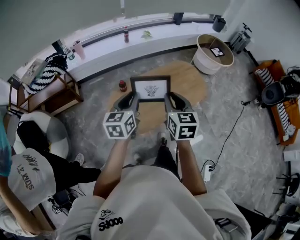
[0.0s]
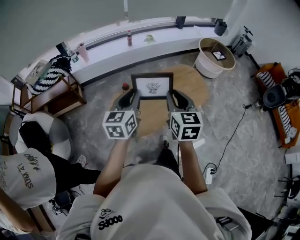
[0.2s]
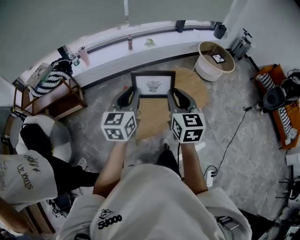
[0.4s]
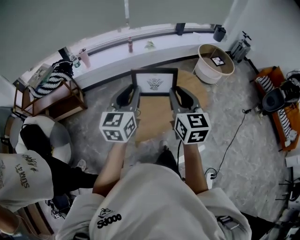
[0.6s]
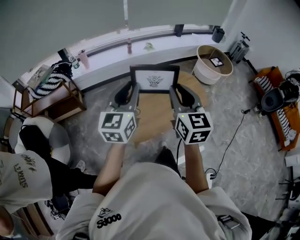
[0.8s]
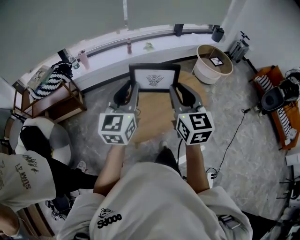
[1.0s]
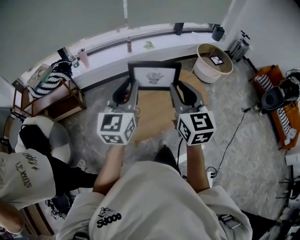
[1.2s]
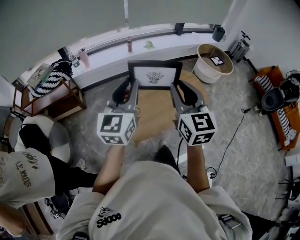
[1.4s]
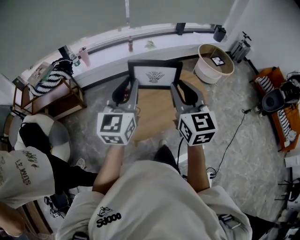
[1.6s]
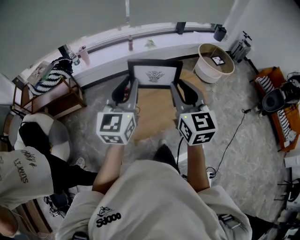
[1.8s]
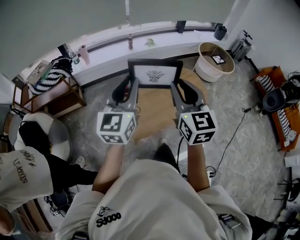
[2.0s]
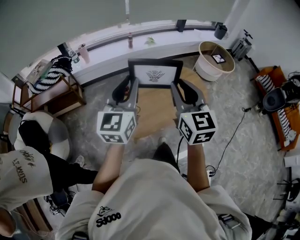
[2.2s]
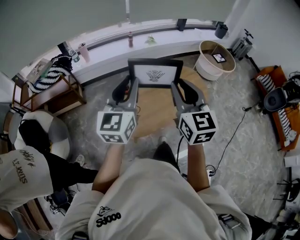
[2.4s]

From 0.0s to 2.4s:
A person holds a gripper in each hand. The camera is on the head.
From 0.0s to 1.2s: Both grippers travel together upward, some 15 cm. The left gripper changes its angle by about 30 degrees; the right gripper changes its angle by roughly 20 degrees.
From 1.2s to 2.4s: Both grippers stay put.

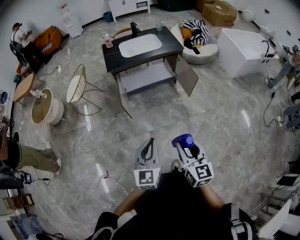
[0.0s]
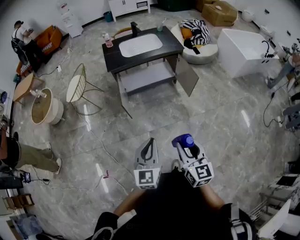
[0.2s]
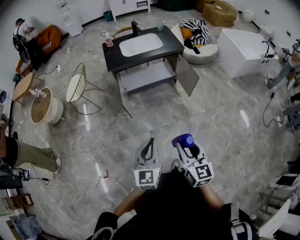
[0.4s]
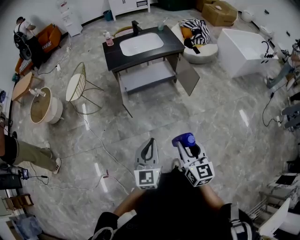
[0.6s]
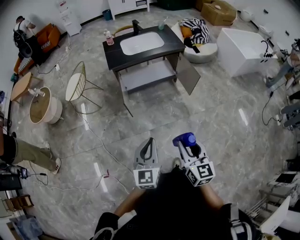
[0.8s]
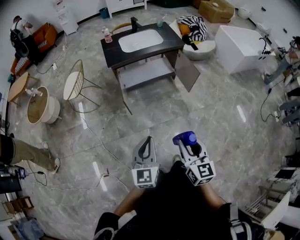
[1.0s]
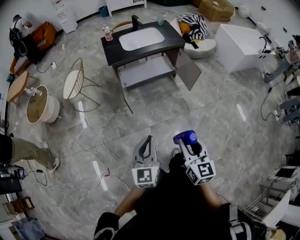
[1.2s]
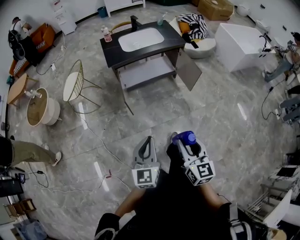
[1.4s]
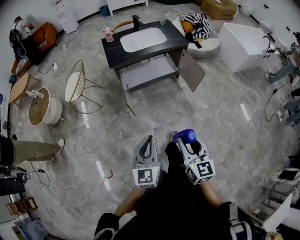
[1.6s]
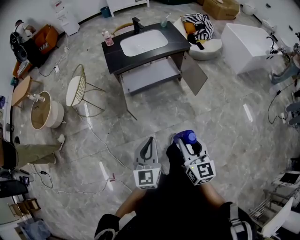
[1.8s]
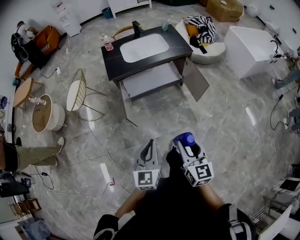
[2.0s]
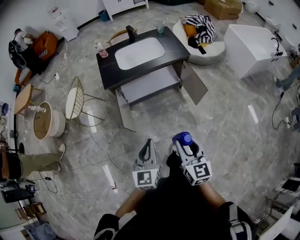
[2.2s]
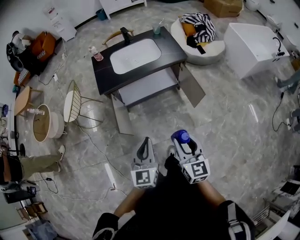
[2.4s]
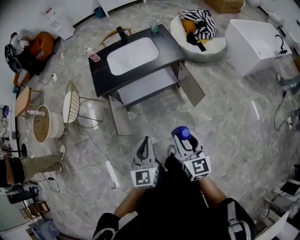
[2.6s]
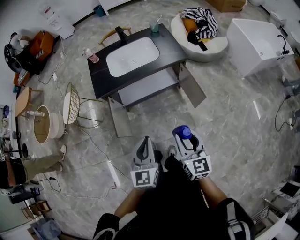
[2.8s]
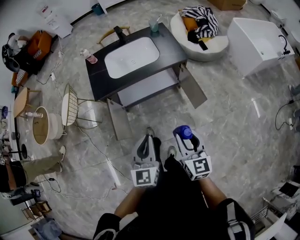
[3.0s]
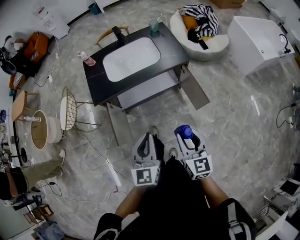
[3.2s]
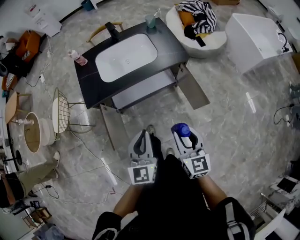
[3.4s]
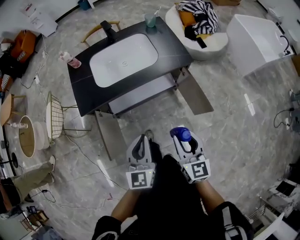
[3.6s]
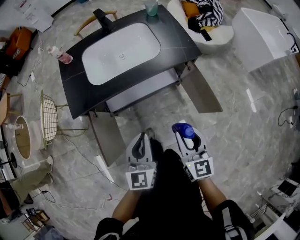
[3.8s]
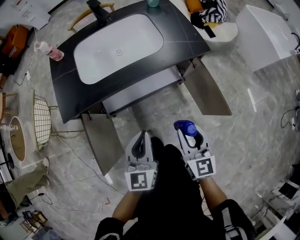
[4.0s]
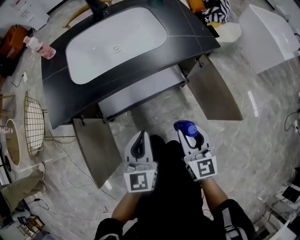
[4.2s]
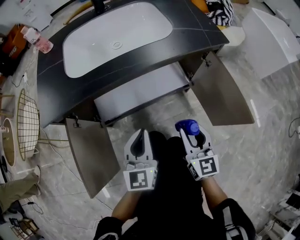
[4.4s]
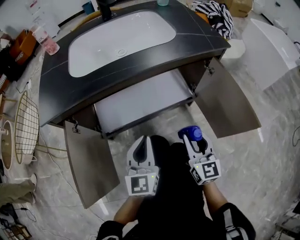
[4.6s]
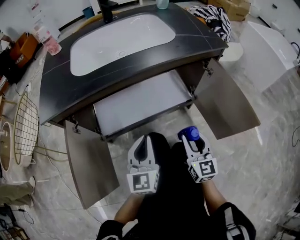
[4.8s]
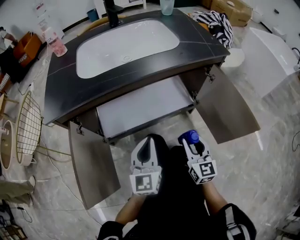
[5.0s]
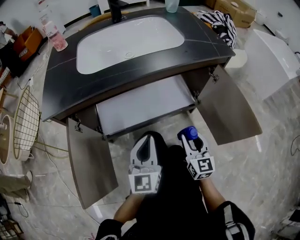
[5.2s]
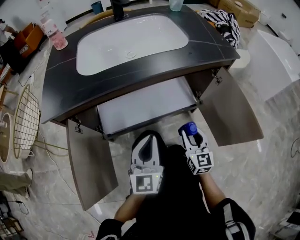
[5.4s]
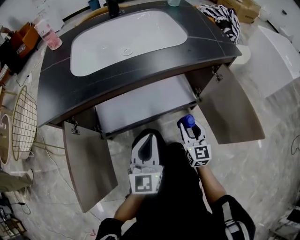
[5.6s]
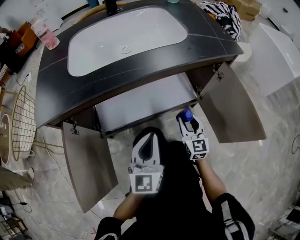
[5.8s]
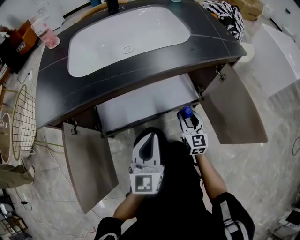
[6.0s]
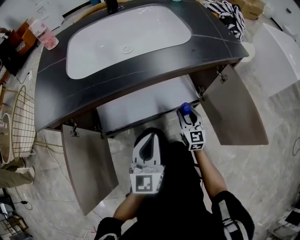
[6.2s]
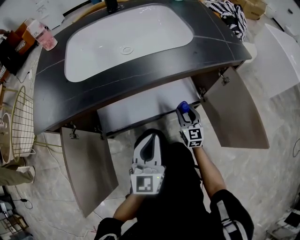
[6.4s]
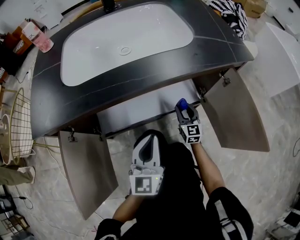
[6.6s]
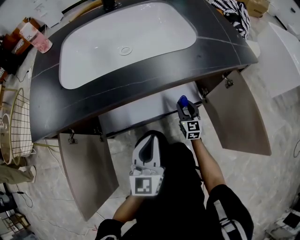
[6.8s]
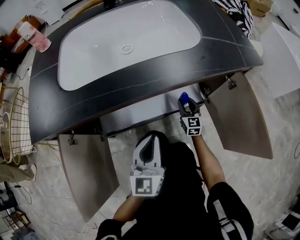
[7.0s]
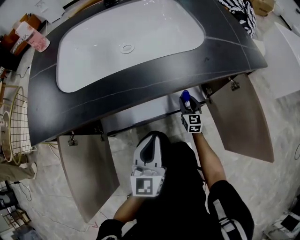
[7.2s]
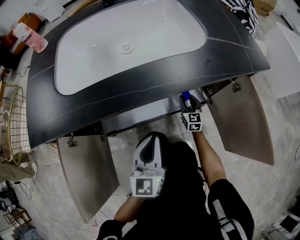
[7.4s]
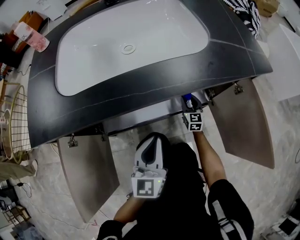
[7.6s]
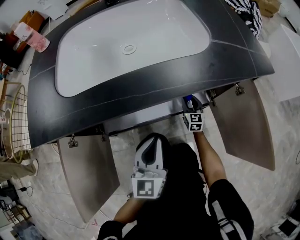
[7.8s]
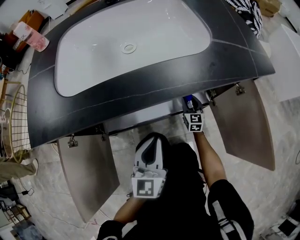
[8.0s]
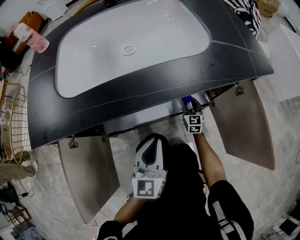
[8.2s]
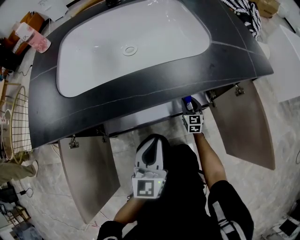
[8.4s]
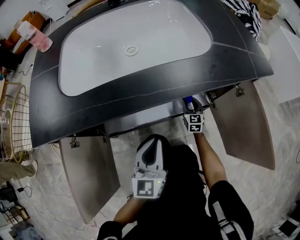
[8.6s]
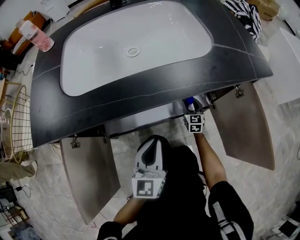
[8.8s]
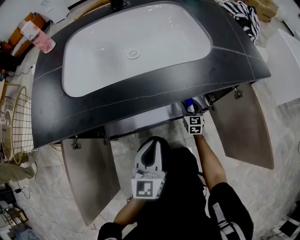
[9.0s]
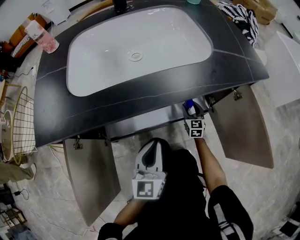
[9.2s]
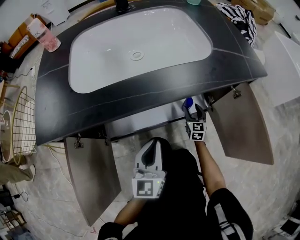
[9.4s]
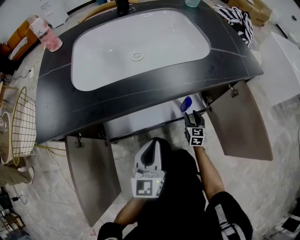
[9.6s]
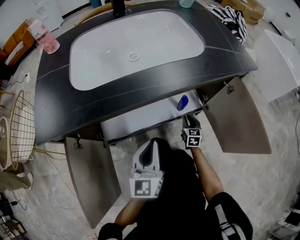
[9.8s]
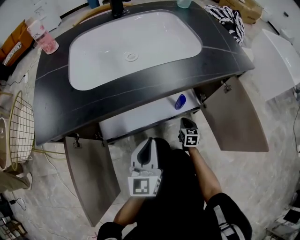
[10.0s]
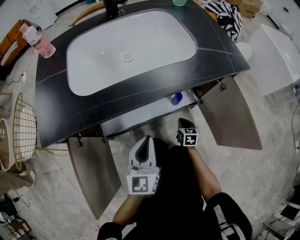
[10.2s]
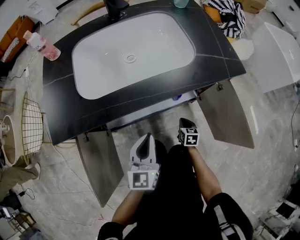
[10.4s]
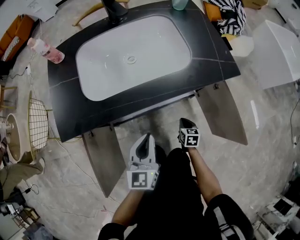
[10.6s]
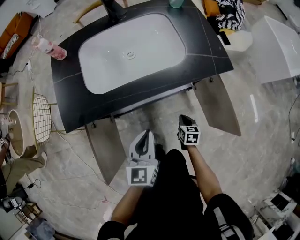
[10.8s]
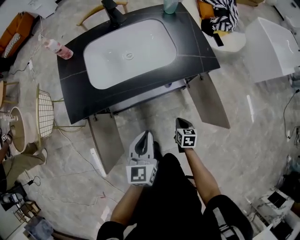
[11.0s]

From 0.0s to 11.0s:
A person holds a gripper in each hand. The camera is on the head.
From 0.0s to 1.6s: The left gripper shifts some 10 cm to the left, while the right gripper travels to the left and forward by some 10 cm.
From 1.6s to 3.2s: The two grippers travel together, forward, approximately 40 cm.
From 3.2s to 4.8s: The grippers both shift downward and forward by about 50 cm.
From 4.8s to 6.2s: The left gripper changes place by about 5 cm. The right gripper shifts some 20 cm forward and downward.
From 6.2s to 7.8s: The left gripper moves forward, about 5 cm. The right gripper goes about 20 cm forward and downward.
From 7.8s to 9.4s: The grippers move only a little.
From 9.4s to 11.0s: The right gripper goes approximately 35 cm backward and upward, rotates some 40 degrees, and closes. The left gripper is displaced upward by about 25 cm.

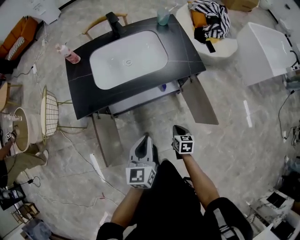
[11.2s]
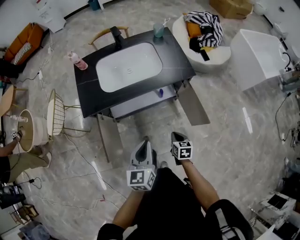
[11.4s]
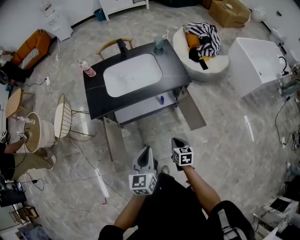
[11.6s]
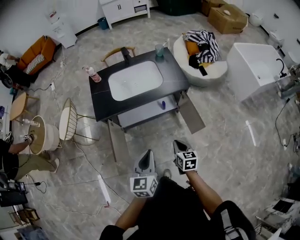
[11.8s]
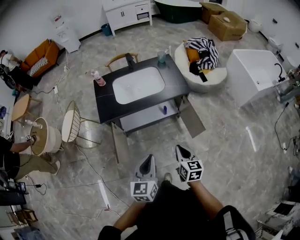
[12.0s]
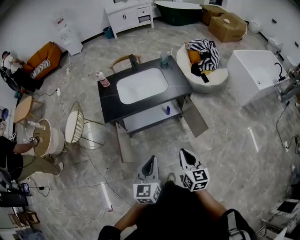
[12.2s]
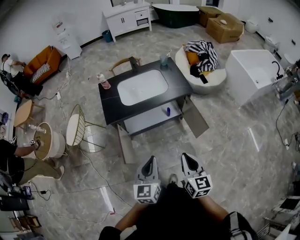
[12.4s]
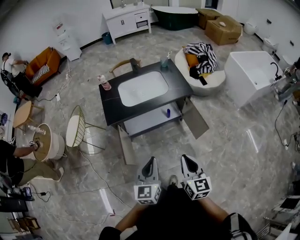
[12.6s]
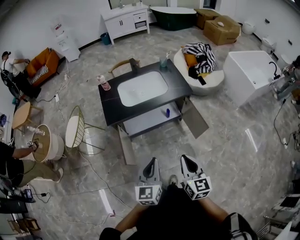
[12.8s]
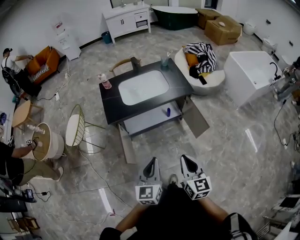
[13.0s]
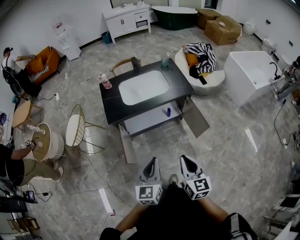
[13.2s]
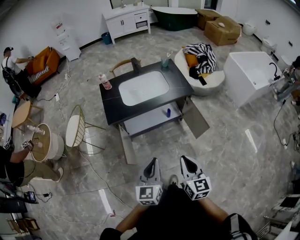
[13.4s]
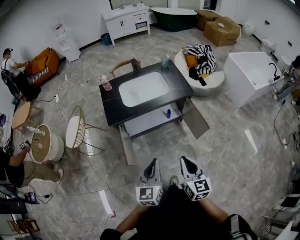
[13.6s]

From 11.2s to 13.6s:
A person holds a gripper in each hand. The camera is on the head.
From 11.2s to 12.4s: The right gripper shifts approximately 50 cm upward and backward, and tilts its fingers roughly 30 degrees upward; the left gripper is displaced backward and upward by approximately 30 cm.
From 12.4s to 13.6s: The grippers move only a little.

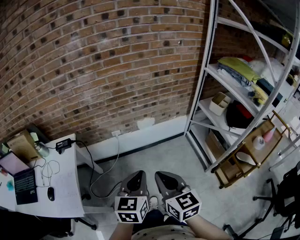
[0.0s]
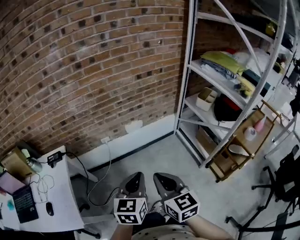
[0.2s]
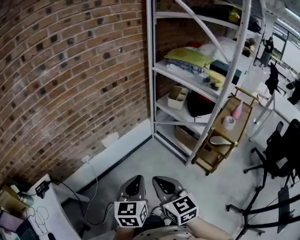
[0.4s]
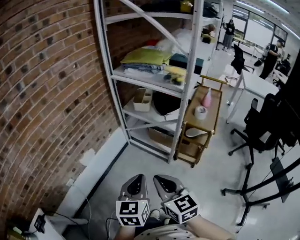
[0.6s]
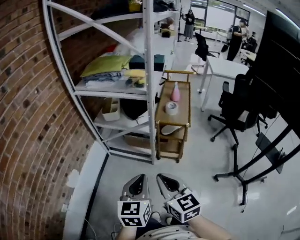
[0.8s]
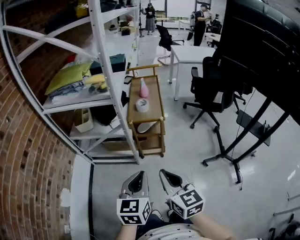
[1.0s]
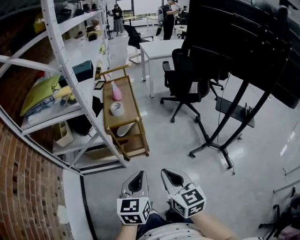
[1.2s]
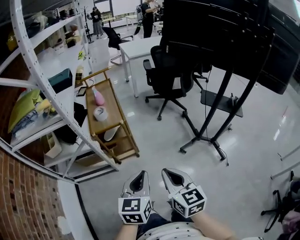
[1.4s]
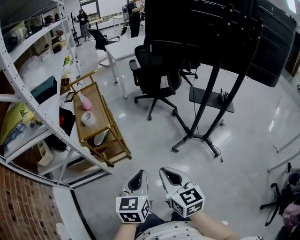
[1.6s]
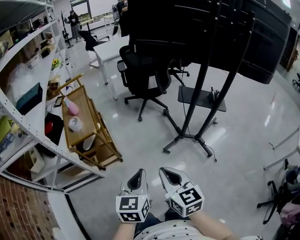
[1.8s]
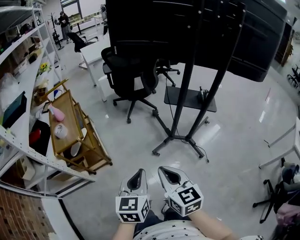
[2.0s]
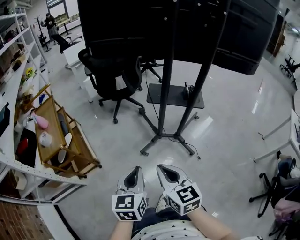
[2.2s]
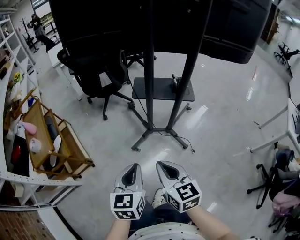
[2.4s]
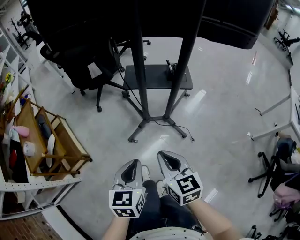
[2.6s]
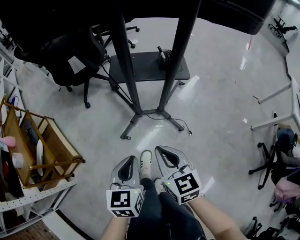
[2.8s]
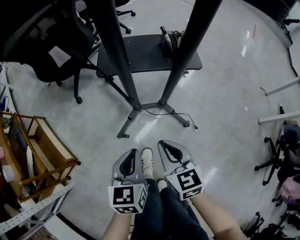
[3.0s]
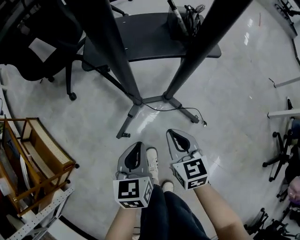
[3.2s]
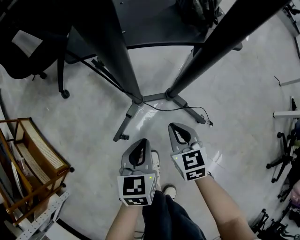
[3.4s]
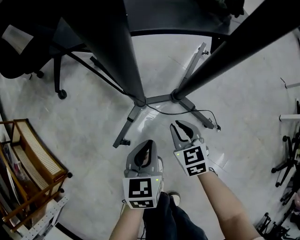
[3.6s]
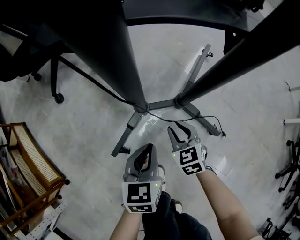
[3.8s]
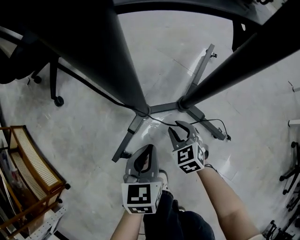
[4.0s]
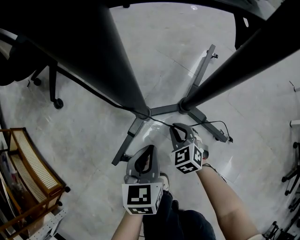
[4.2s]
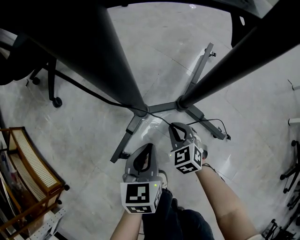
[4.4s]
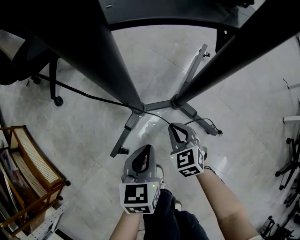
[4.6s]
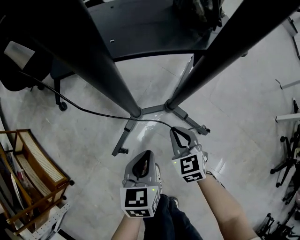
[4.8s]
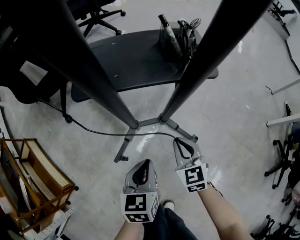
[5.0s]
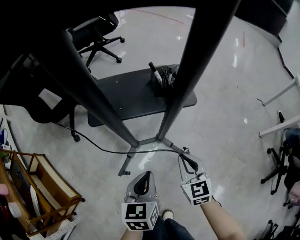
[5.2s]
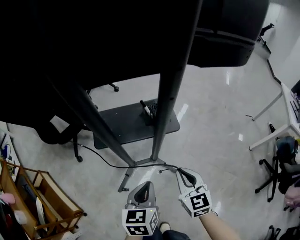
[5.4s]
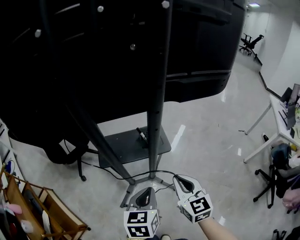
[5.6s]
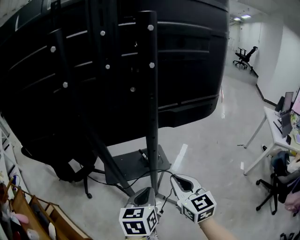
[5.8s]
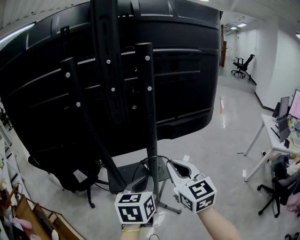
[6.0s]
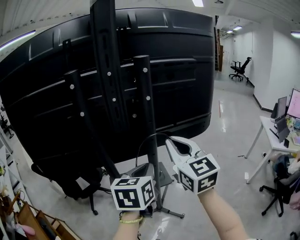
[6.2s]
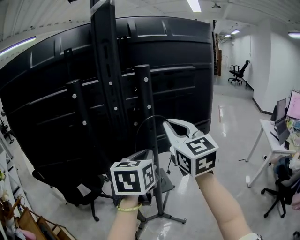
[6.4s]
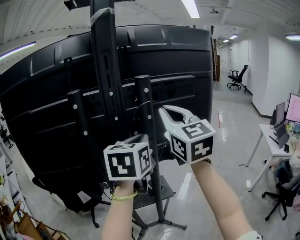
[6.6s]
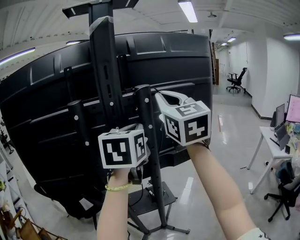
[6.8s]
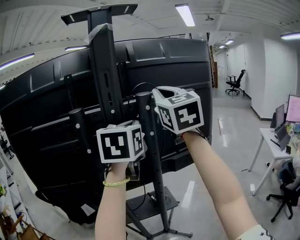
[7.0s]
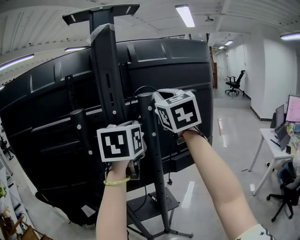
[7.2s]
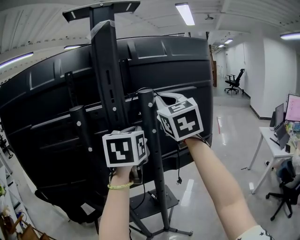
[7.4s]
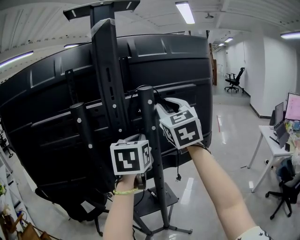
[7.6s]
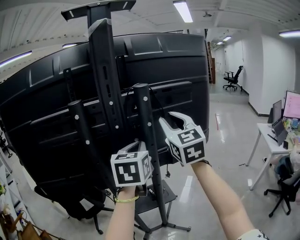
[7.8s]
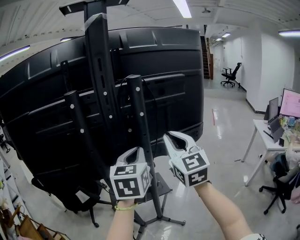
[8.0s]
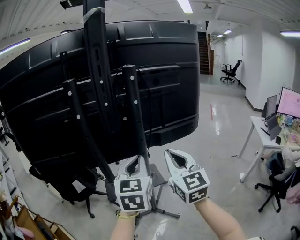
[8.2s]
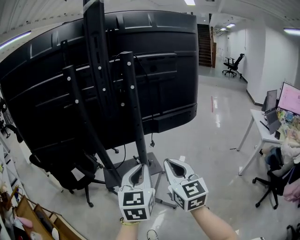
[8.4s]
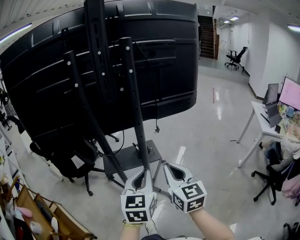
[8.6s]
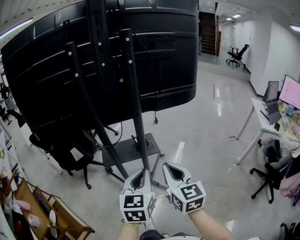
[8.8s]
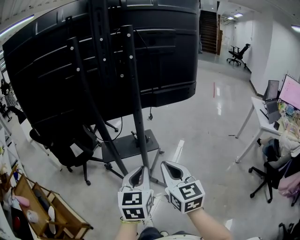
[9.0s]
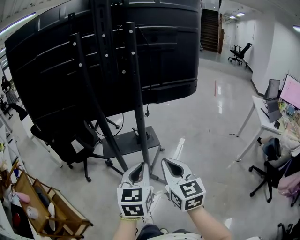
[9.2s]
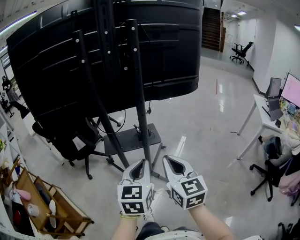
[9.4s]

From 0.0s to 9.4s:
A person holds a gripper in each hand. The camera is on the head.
From 0.0s to 1.6s: The two grippers travel together, approximately 50 cm. The right gripper turns by approximately 100 degrees; the left gripper swivels roughly 90 degrees.
From 1.6s to 3.2s: Both grippers are carried approximately 60 cm. The left gripper swivels roughly 30 degrees. The right gripper changes its angle by about 30 degrees.
From 3.2s to 4.8s: The right gripper is displaced downward and forward by roughly 20 cm, and opens, then closes again; the left gripper heads downward, covering approximately 15 cm.
From 4.8s to 6.2s: Both grippers travel together upward, some 80 cm. The left gripper swivels roughly 20 degrees; the right gripper points its fingers roughly 40 degrees further upward.
From 6.2s to 7.8s: Both grippers travel together upward and forward, some 15 cm. The right gripper opens up.
From 7.8s to 9.4s: The grippers both shift backward and downward by roughly 40 cm. The right gripper rotates about 30 degrees, and closes.
